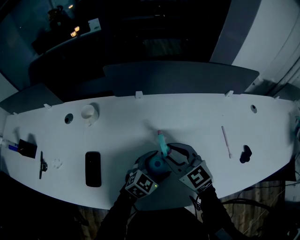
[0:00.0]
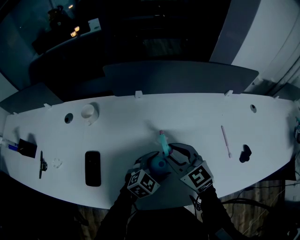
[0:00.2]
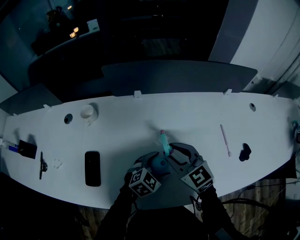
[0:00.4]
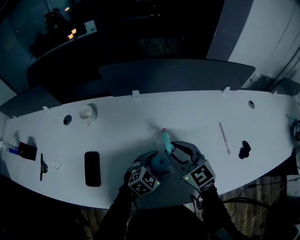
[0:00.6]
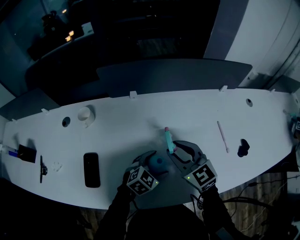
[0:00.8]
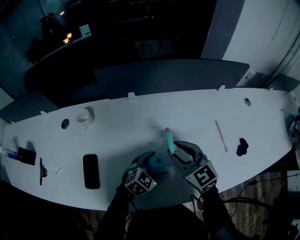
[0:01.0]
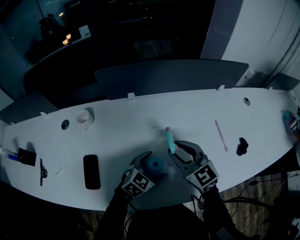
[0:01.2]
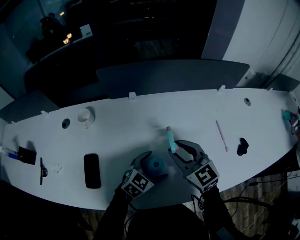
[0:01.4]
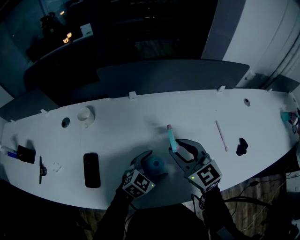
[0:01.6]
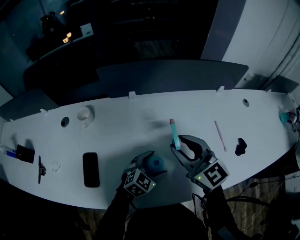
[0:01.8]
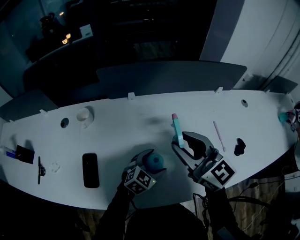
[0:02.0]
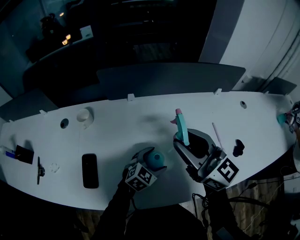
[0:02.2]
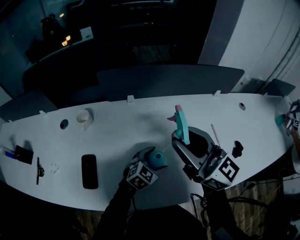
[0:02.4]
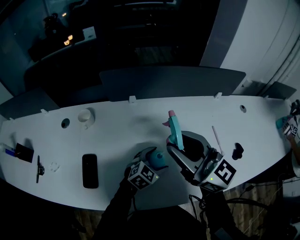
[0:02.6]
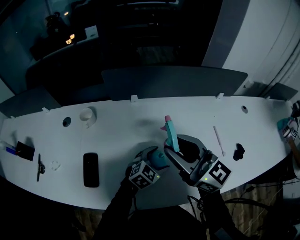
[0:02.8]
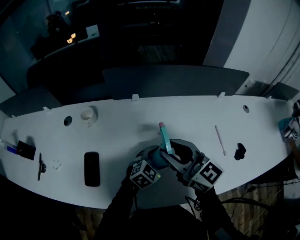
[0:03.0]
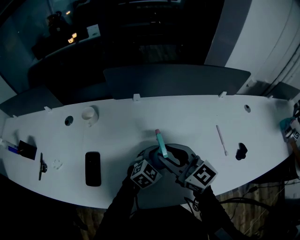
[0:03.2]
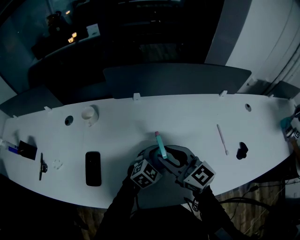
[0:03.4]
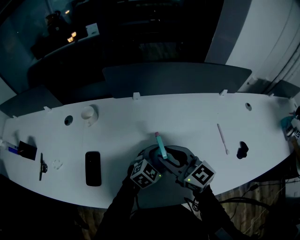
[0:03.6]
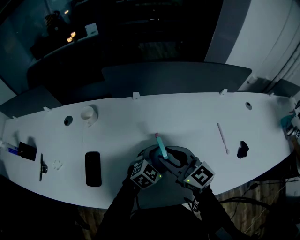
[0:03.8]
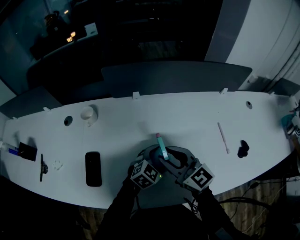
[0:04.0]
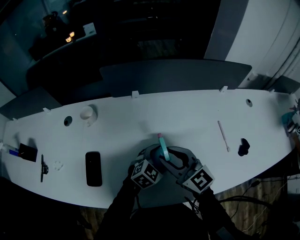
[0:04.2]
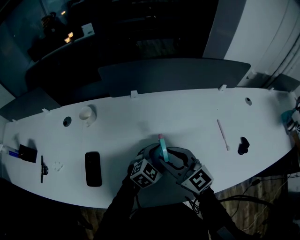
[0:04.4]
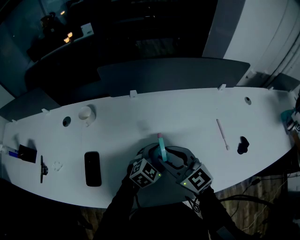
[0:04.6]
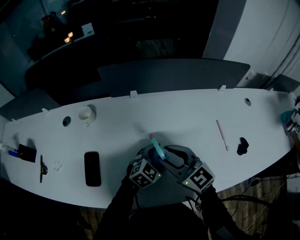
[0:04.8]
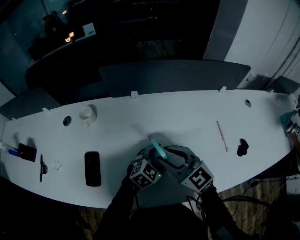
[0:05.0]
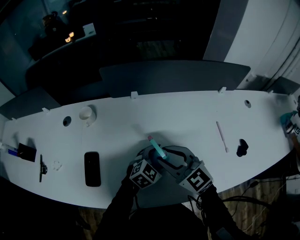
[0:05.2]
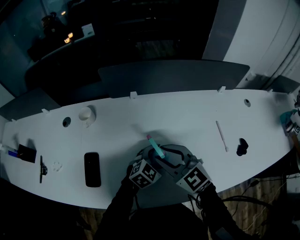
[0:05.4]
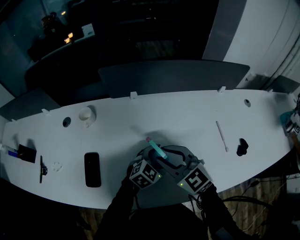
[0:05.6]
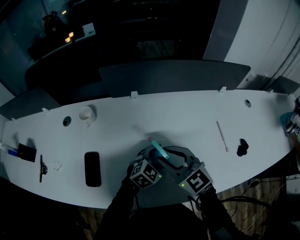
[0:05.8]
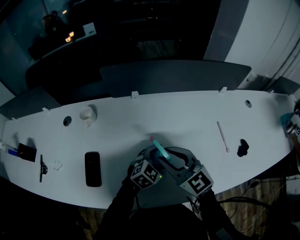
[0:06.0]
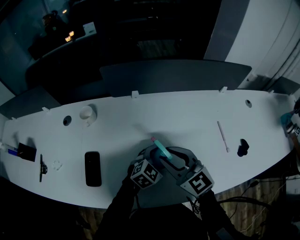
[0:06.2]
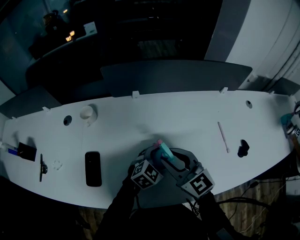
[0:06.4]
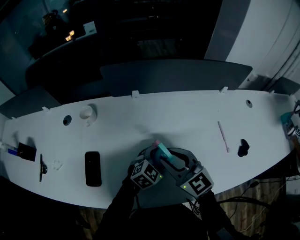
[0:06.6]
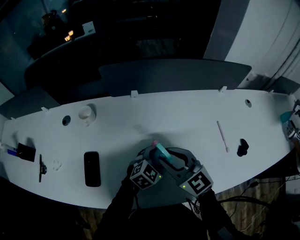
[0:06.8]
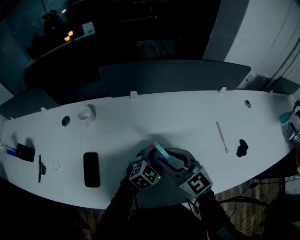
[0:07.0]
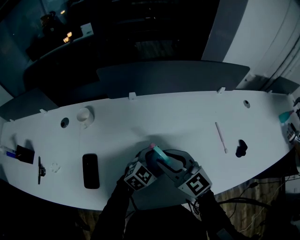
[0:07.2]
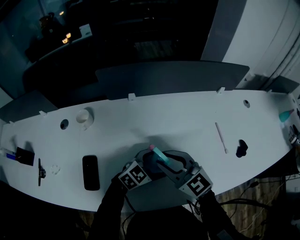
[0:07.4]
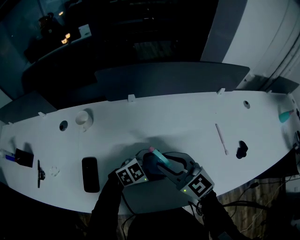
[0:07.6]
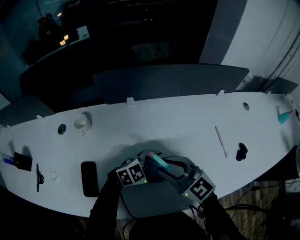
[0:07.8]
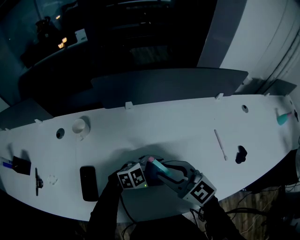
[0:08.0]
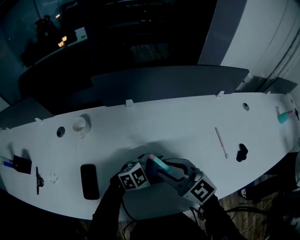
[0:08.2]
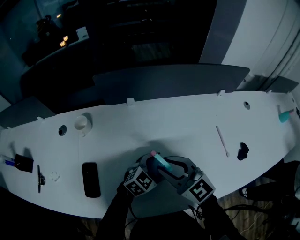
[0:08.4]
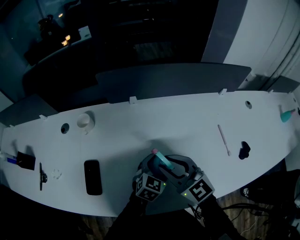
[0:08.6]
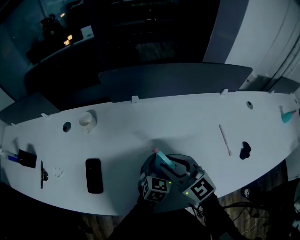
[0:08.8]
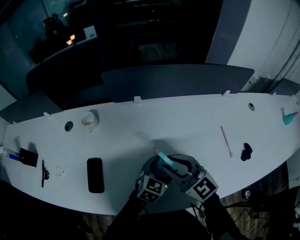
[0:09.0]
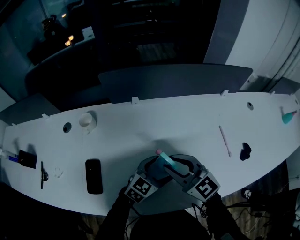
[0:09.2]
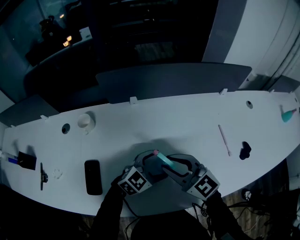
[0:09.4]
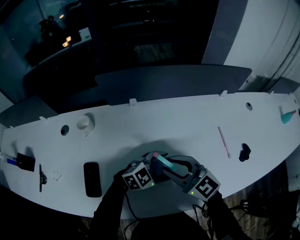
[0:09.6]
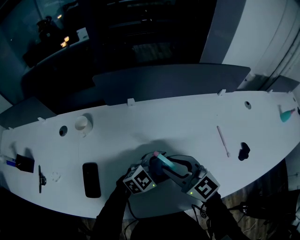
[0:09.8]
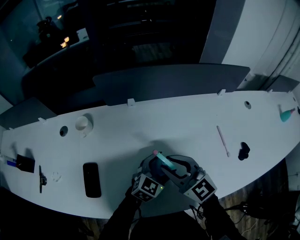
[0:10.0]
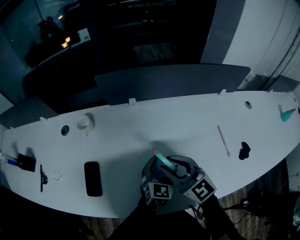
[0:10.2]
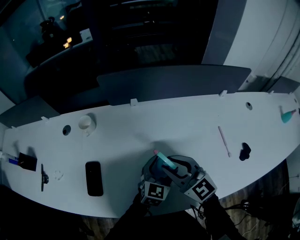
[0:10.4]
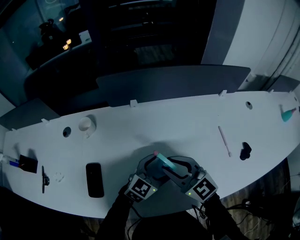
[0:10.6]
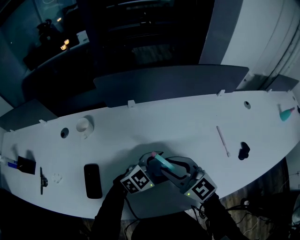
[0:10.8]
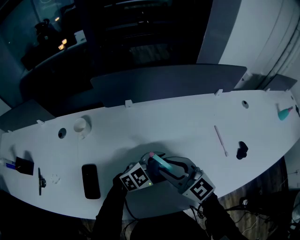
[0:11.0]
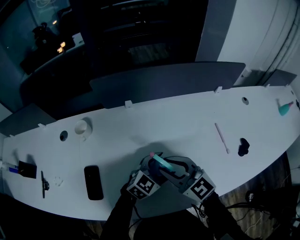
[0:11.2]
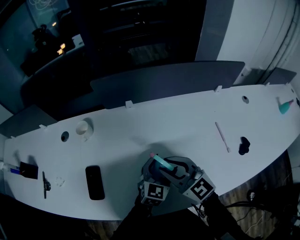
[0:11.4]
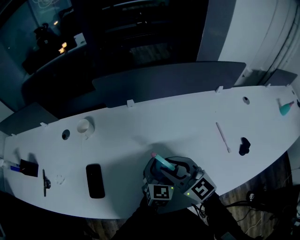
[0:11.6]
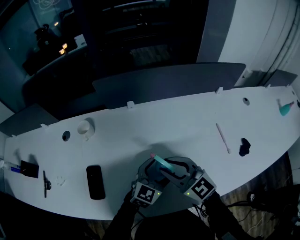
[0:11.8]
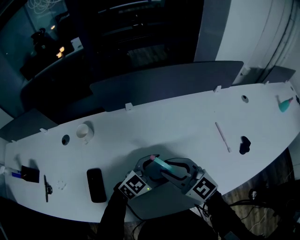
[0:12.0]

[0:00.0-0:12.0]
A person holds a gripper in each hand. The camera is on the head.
0:00.0 to 0:01.6: The right gripper shifts by approximately 5 cm.
0:01.6 to 0:03.0: The right gripper goes approximately 5 cm upward, and rotates approximately 20 degrees.
0:03.0 to 0:04.4: The right gripper heads downward, covering roughly 10 cm.
0:04.4 to 0:06.0: The grippers make only small movements.
0:06.0 to 0:07.6: The left gripper turns by roughly 20 degrees.
0:07.6 to 0:09.0: The left gripper rotates about 40 degrees.
0:10.4 to 0:12.0: The left gripper swivels about 30 degrees.

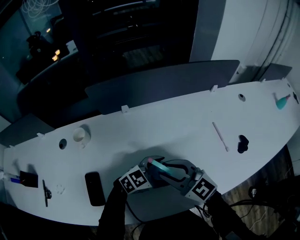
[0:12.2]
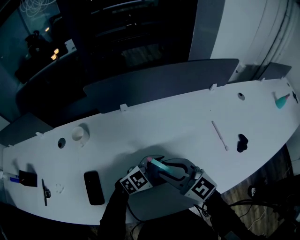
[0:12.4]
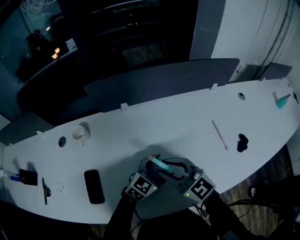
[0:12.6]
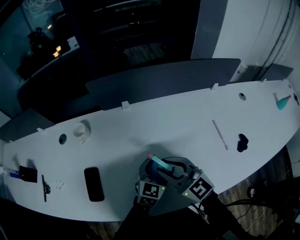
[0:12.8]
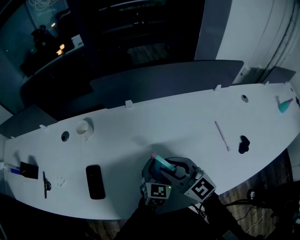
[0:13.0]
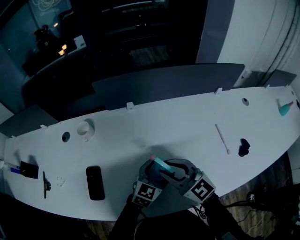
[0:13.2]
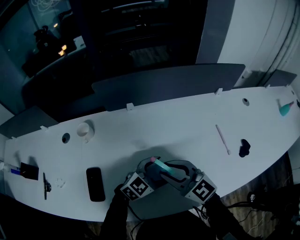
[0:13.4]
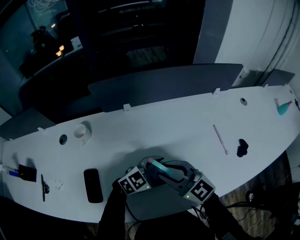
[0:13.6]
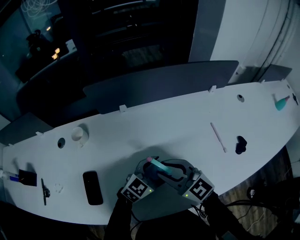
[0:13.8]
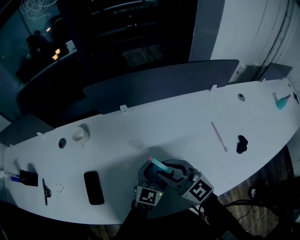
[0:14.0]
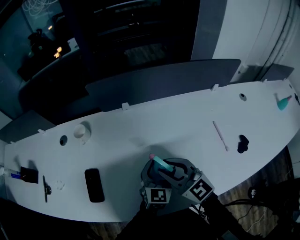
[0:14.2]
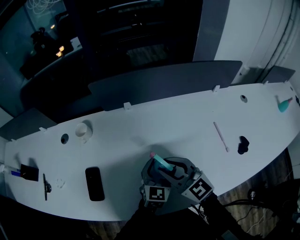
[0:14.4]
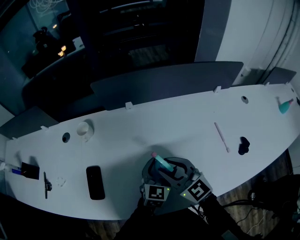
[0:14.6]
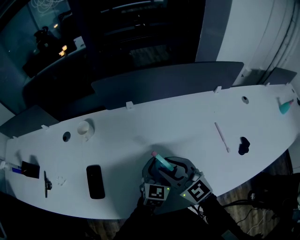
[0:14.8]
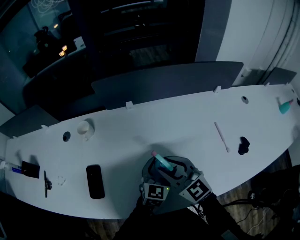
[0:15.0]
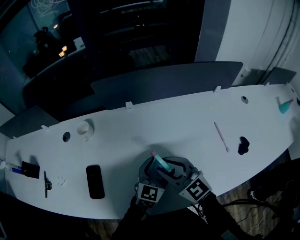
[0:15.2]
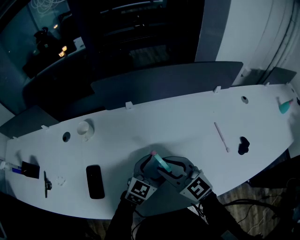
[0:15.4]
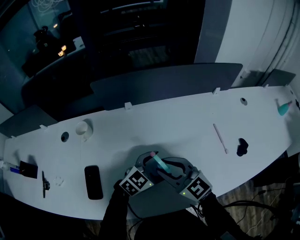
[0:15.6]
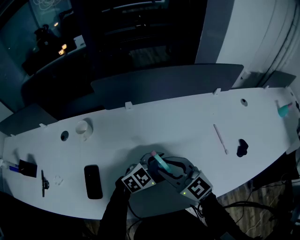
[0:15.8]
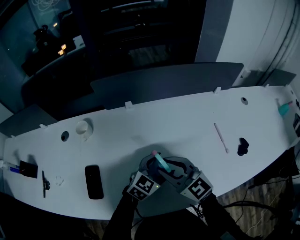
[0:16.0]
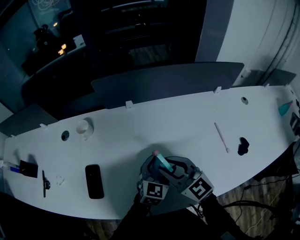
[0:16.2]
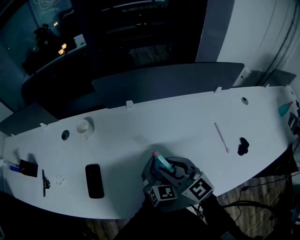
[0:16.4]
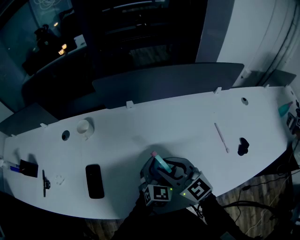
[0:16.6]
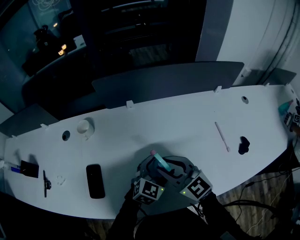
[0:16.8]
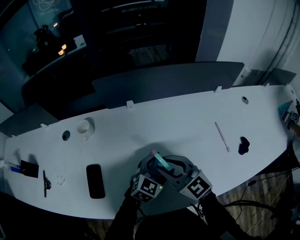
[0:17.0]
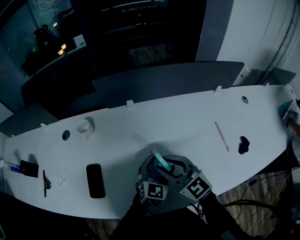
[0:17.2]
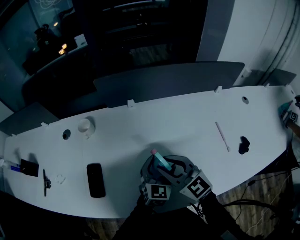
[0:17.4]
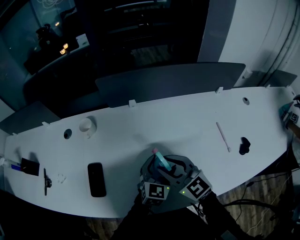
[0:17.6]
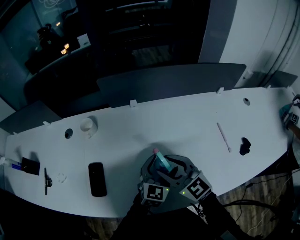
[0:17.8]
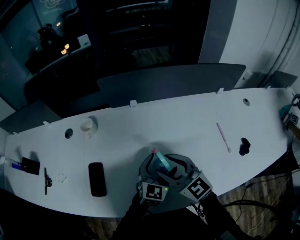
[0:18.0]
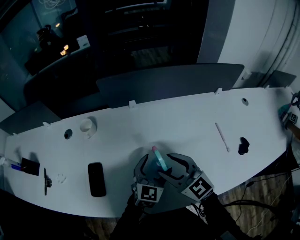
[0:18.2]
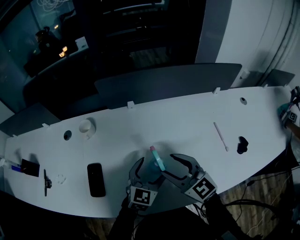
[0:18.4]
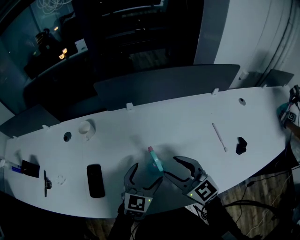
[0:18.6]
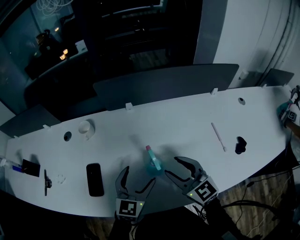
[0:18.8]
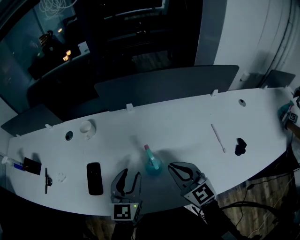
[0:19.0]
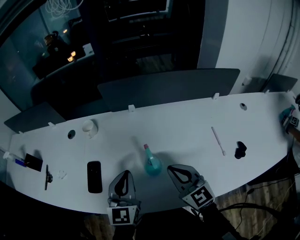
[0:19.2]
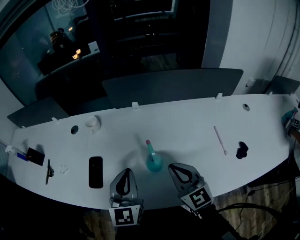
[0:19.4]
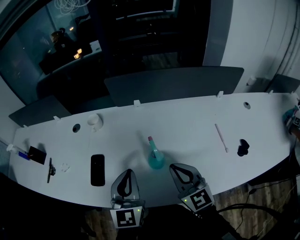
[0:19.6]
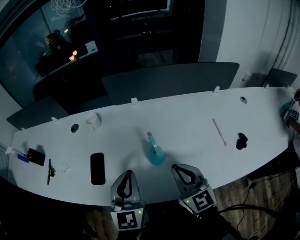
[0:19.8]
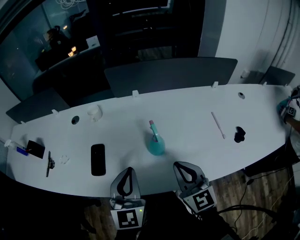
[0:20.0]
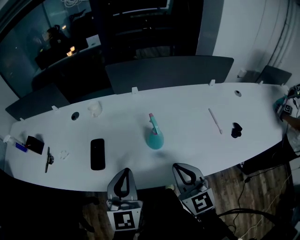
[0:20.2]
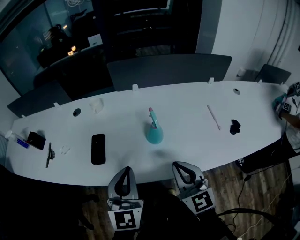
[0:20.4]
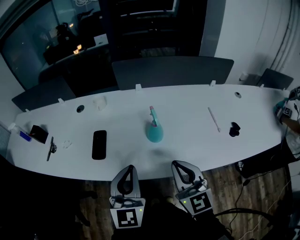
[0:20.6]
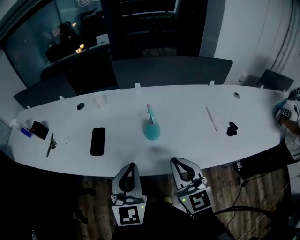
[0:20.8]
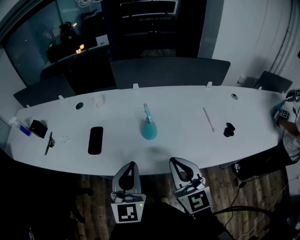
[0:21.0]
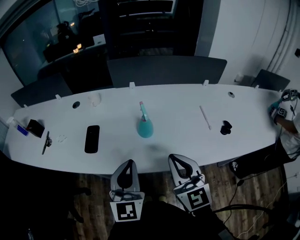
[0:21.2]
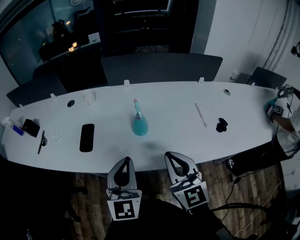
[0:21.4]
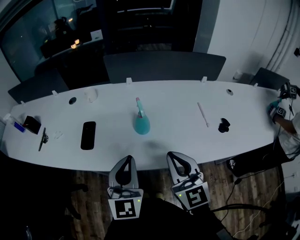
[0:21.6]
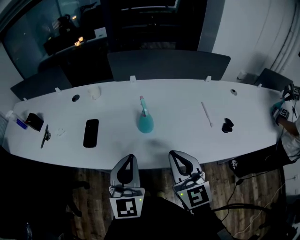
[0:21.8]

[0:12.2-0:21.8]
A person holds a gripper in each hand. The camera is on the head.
0:17.0 to 0:18.6: The right gripper opens up, while the left gripper travels to the left by some 5 cm.
0:18.6 to 0:20.2: The left gripper travels backward, upward and to the left by roughly 20 cm, swivels approximately 30 degrees, and closes its fingers; the right gripper is displaced backward by approximately 15 cm, and closes its fingers.
0:20.2 to 0:21.8: The right gripper heads backward, covering roughly 5 cm. The left gripper goes about 10 cm to the right and backward.

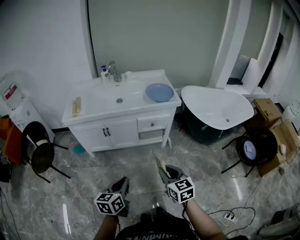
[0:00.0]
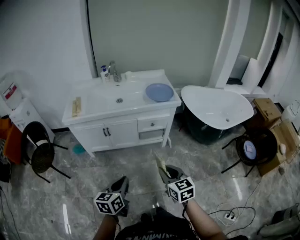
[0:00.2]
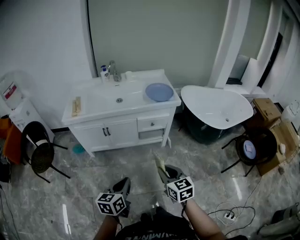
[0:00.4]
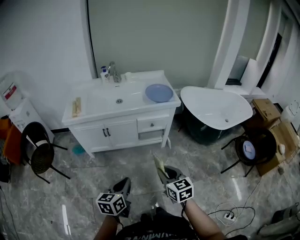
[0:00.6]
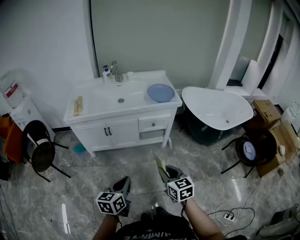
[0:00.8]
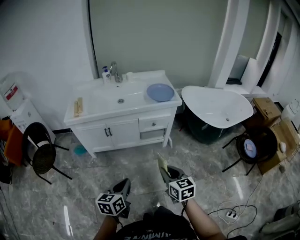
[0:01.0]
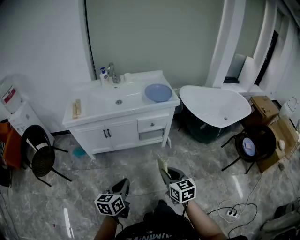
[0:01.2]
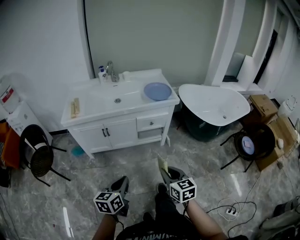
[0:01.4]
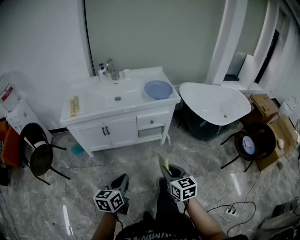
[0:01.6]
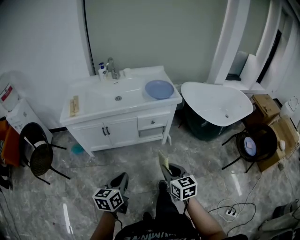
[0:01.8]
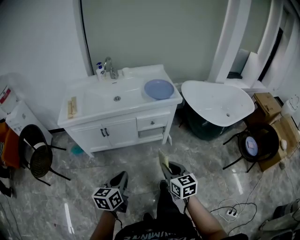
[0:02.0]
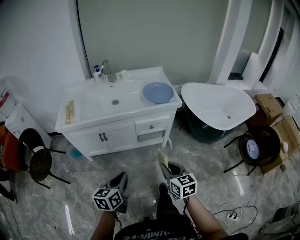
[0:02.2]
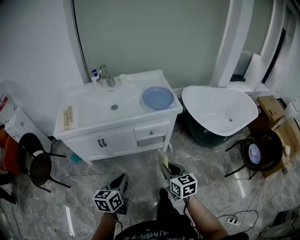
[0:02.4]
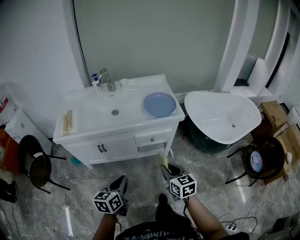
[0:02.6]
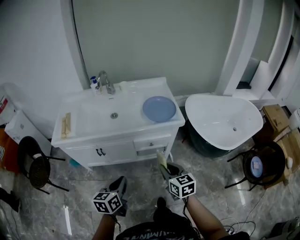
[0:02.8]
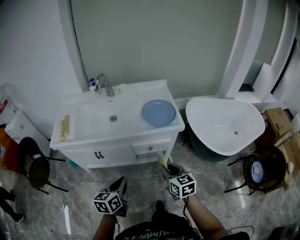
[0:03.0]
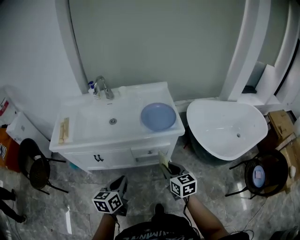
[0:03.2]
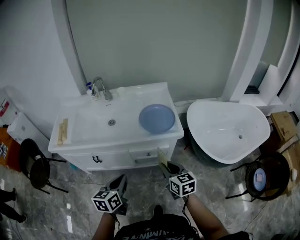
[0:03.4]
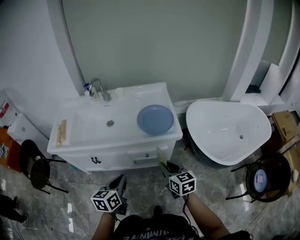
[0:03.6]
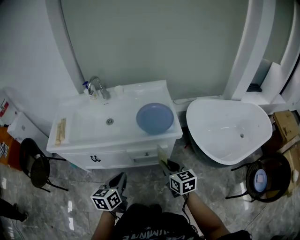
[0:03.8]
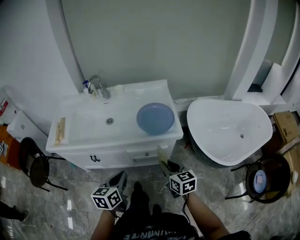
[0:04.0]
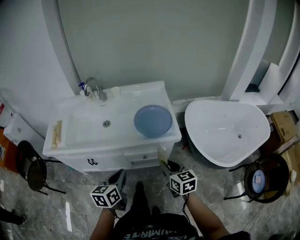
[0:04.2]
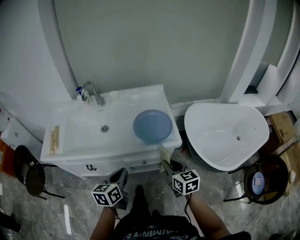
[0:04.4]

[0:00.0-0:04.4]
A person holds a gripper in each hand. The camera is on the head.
0:00.0 to 0:01.4: The grippers move only a little.
0:01.4 to 0:03.0: Both grippers move forward, about 30 cm.
0:03.0 to 0:04.4: The two grippers go about 15 cm forward and to the right.
